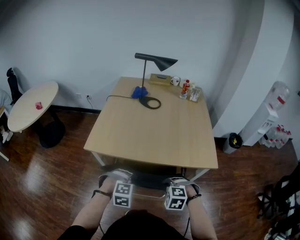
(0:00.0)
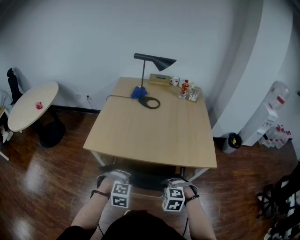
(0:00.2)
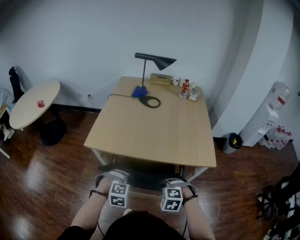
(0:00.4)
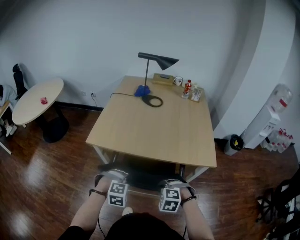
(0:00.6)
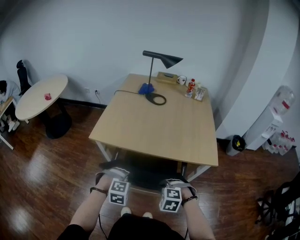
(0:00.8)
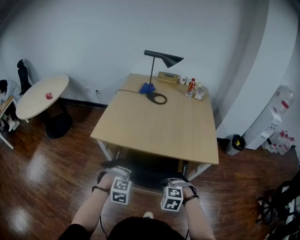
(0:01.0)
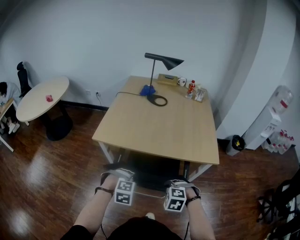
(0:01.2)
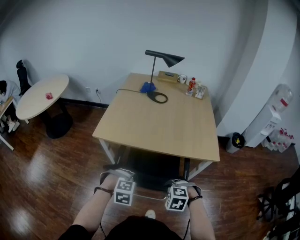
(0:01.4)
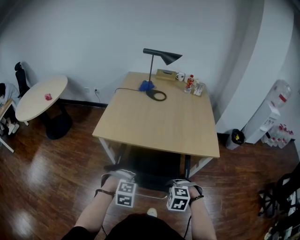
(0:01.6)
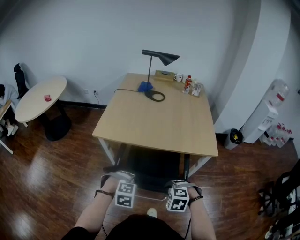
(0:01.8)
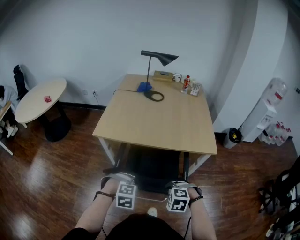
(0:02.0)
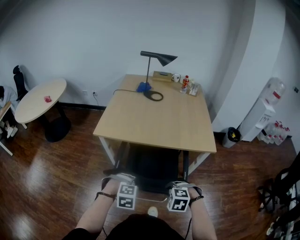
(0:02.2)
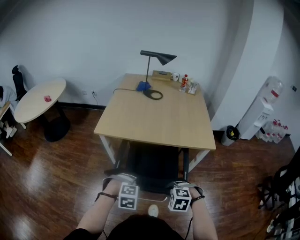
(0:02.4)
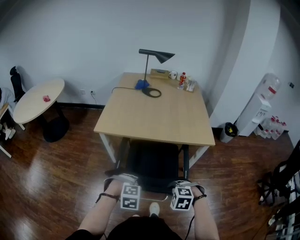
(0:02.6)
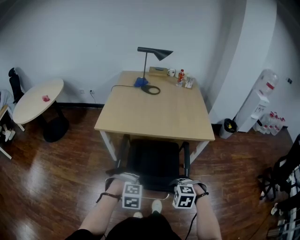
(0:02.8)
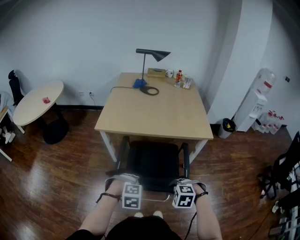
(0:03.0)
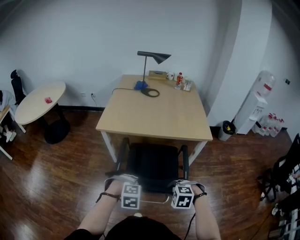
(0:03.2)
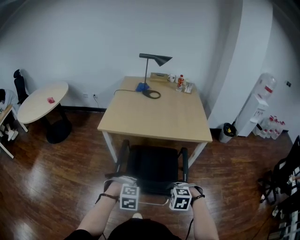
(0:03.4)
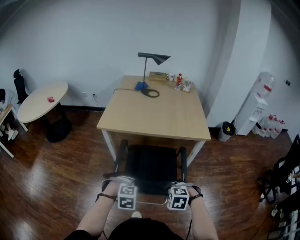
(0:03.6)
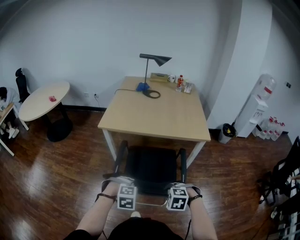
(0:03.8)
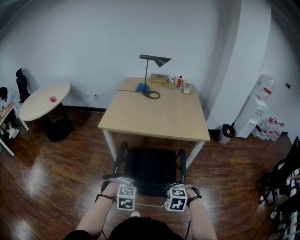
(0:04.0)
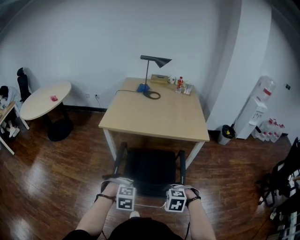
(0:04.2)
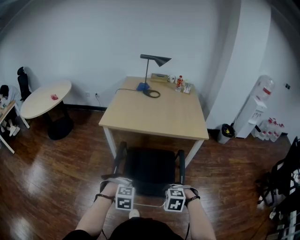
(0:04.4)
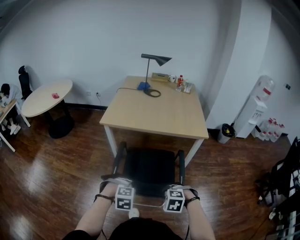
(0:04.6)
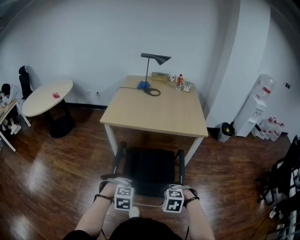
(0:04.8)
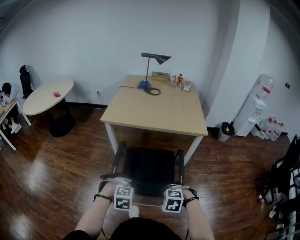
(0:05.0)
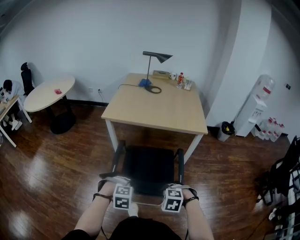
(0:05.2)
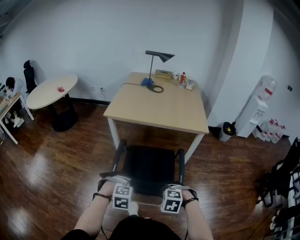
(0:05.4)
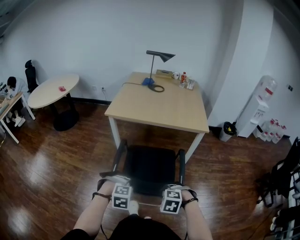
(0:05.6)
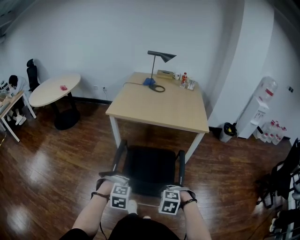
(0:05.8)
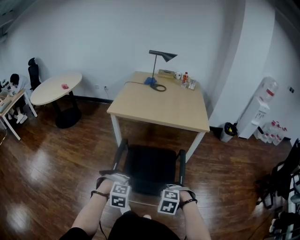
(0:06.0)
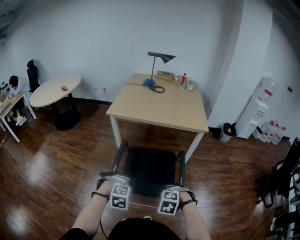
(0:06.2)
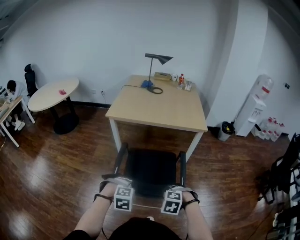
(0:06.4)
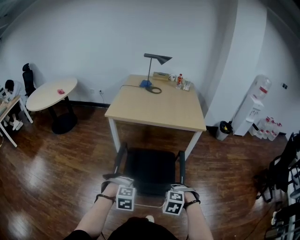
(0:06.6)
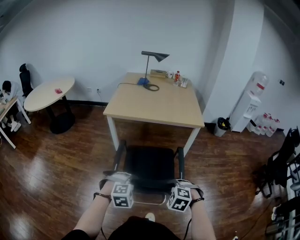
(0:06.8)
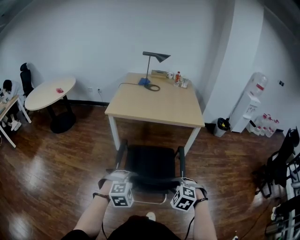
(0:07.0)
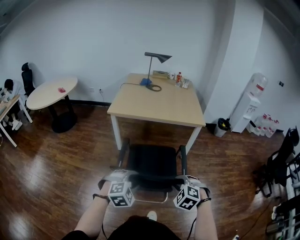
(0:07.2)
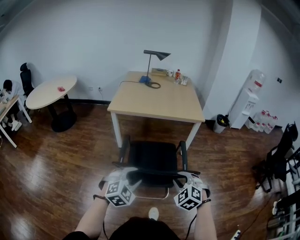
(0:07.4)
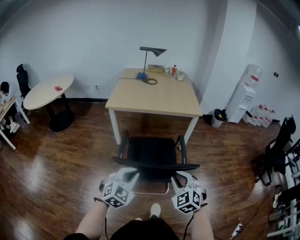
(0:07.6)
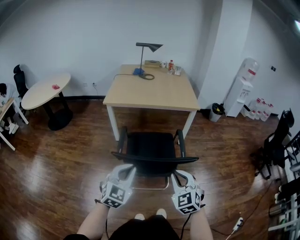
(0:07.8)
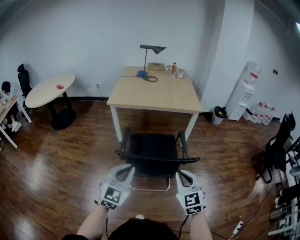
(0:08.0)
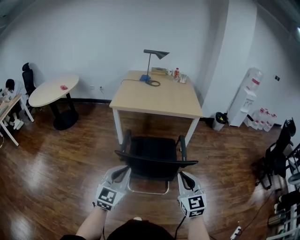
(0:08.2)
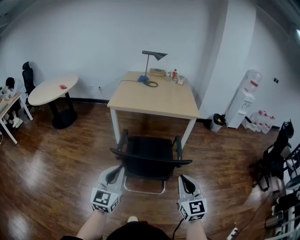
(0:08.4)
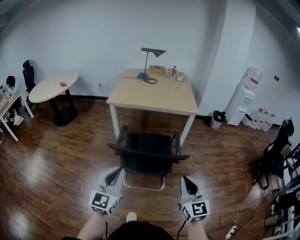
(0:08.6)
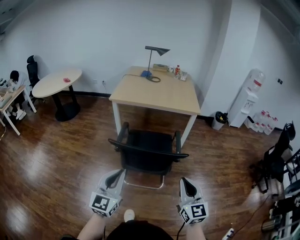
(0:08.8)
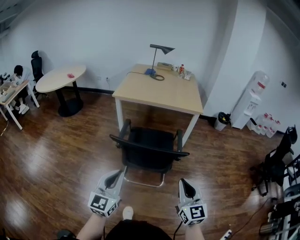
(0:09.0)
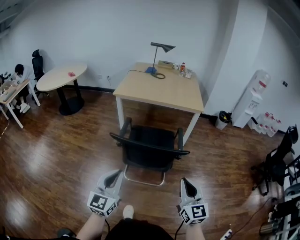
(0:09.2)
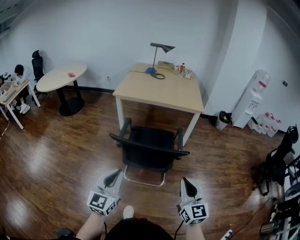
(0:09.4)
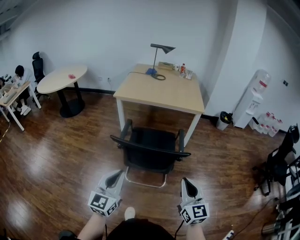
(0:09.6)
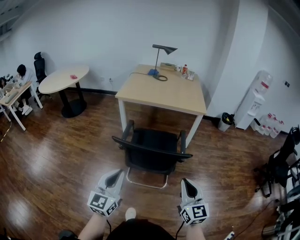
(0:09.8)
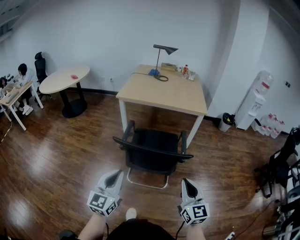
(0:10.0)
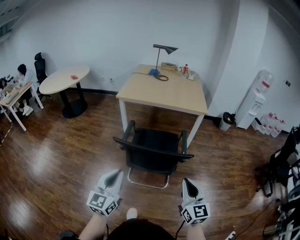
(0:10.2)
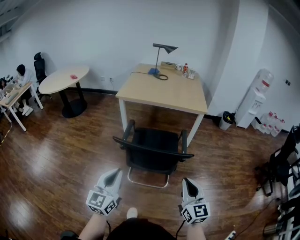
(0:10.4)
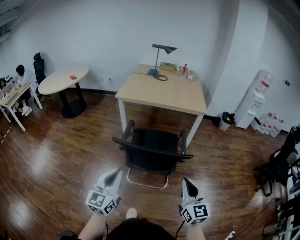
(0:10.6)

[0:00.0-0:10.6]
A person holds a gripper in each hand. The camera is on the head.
0:00.0 to 0:01.6: The two grippers go about 10 cm backward.
0:01.6 to 0:03.0: The two grippers go approximately 15 cm backward.
0:03.0 to 0:04.6: Both grippers travel together backward, some 10 cm.
0:04.6 to 0:06.0: The two grippers go some 10 cm backward.
0:06.0 to 0:07.6: The grippers both shift upward and backward by approximately 15 cm. The left gripper tilts its fingers roughly 40 degrees upward, and opens and closes again; the right gripper tilts its fingers some 40 degrees upward.
0:07.6 to 0:09.0: The left gripper is displaced backward and upward by roughly 15 cm, and changes its angle by roughly 40 degrees. Meanwhile the right gripper shifts some 15 cm backward, to the right and upward, and rotates some 40 degrees.
0:09.0 to 0:10.6: The grippers move only a little.

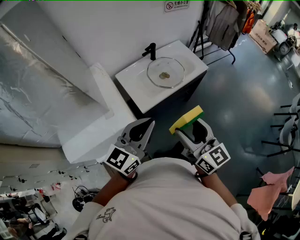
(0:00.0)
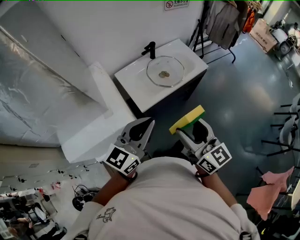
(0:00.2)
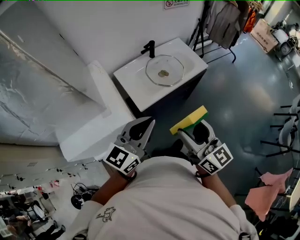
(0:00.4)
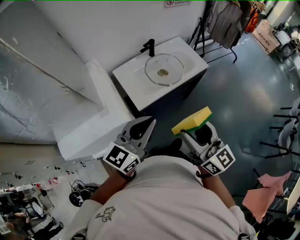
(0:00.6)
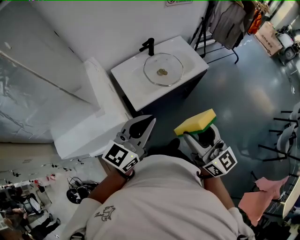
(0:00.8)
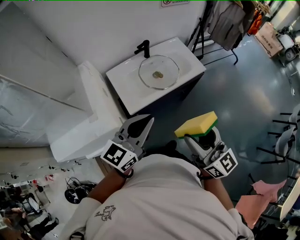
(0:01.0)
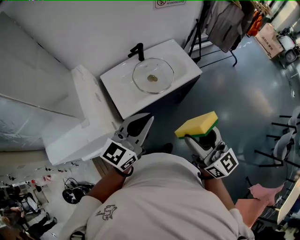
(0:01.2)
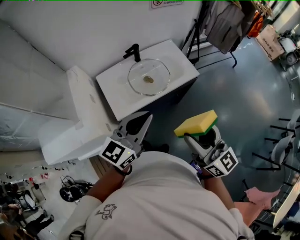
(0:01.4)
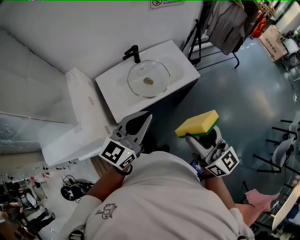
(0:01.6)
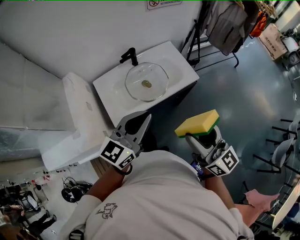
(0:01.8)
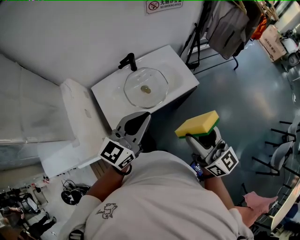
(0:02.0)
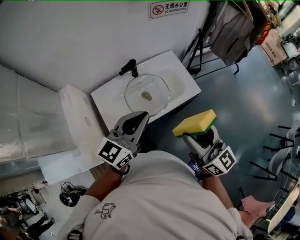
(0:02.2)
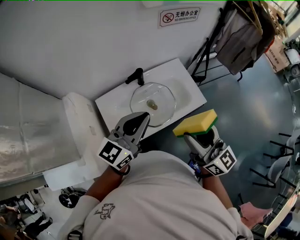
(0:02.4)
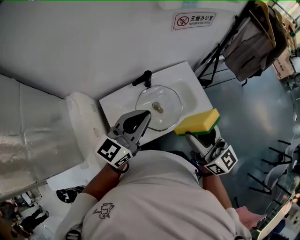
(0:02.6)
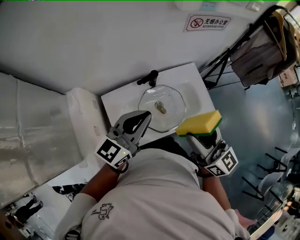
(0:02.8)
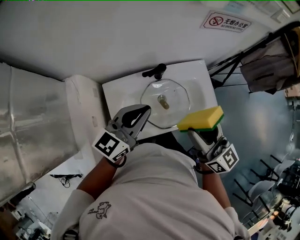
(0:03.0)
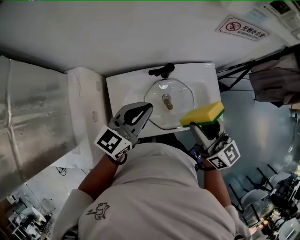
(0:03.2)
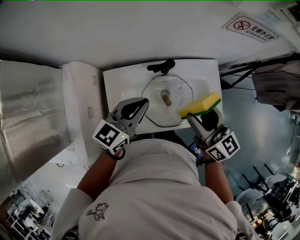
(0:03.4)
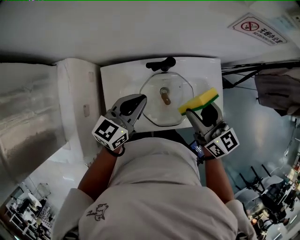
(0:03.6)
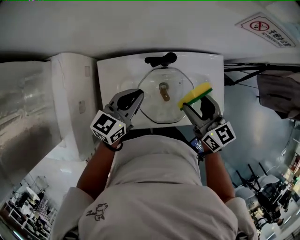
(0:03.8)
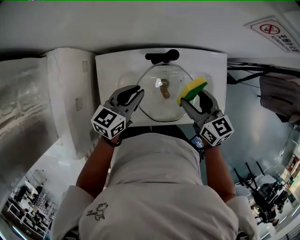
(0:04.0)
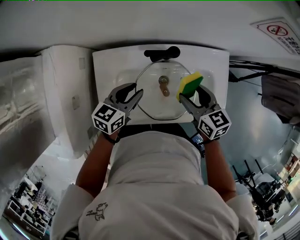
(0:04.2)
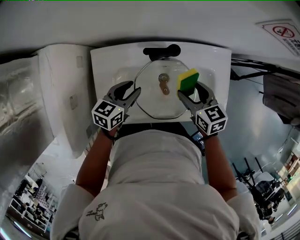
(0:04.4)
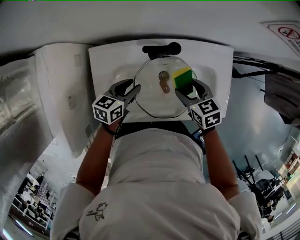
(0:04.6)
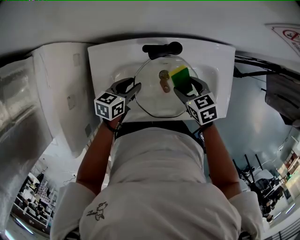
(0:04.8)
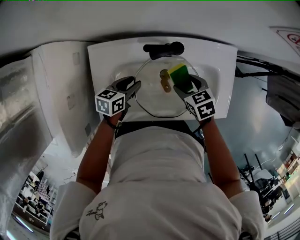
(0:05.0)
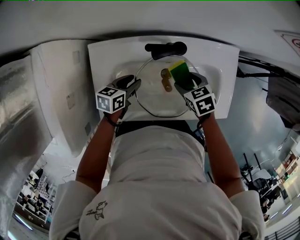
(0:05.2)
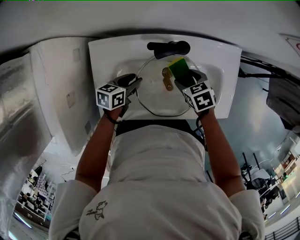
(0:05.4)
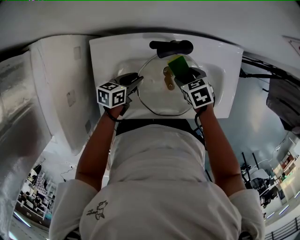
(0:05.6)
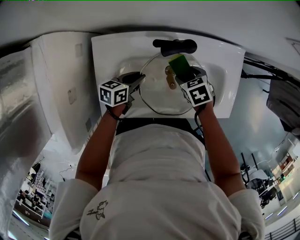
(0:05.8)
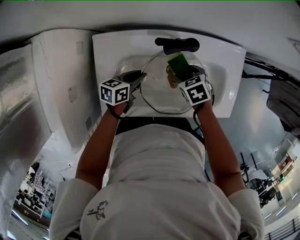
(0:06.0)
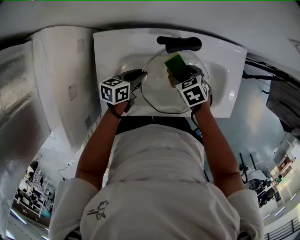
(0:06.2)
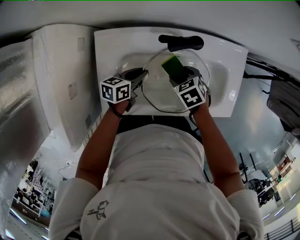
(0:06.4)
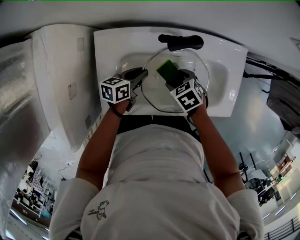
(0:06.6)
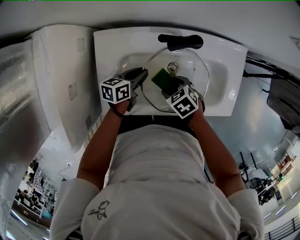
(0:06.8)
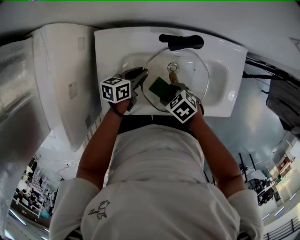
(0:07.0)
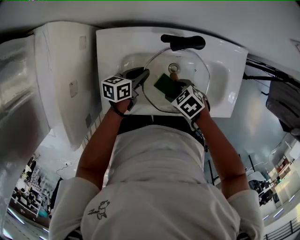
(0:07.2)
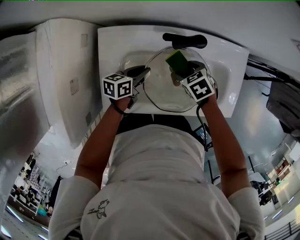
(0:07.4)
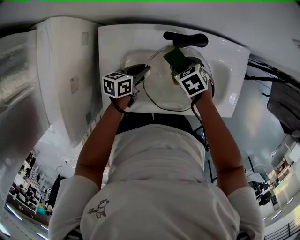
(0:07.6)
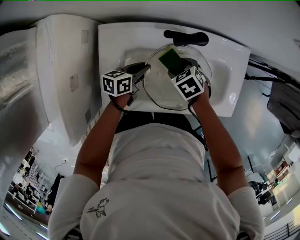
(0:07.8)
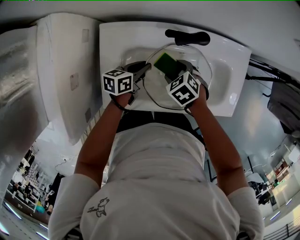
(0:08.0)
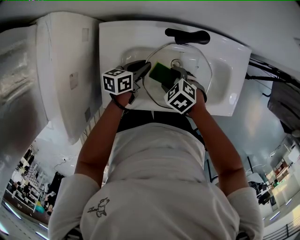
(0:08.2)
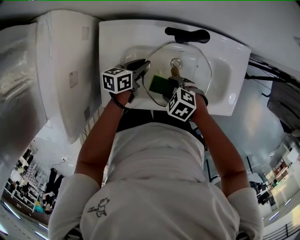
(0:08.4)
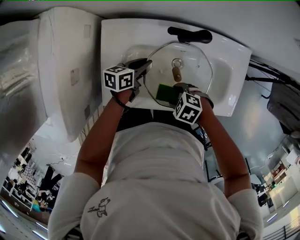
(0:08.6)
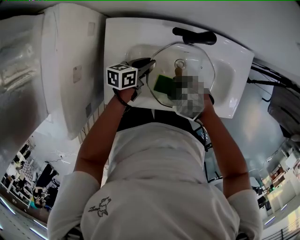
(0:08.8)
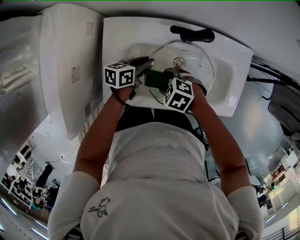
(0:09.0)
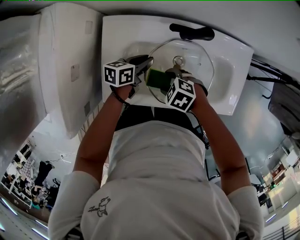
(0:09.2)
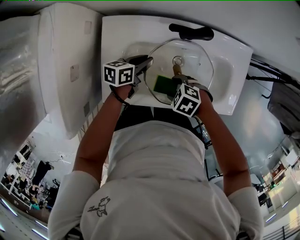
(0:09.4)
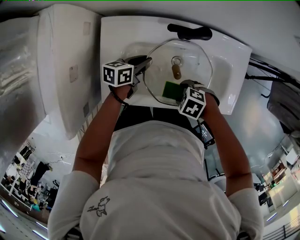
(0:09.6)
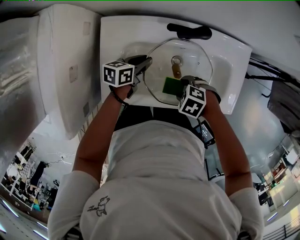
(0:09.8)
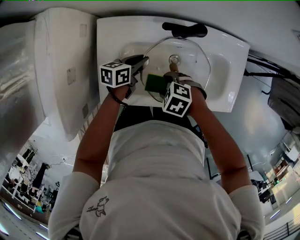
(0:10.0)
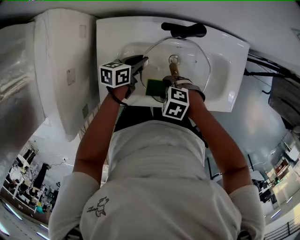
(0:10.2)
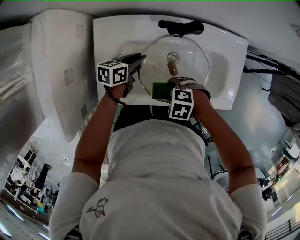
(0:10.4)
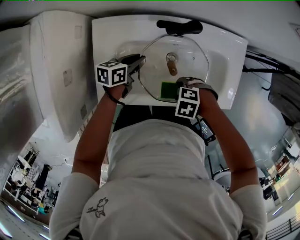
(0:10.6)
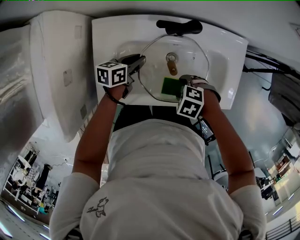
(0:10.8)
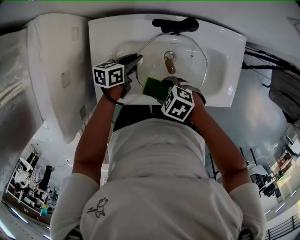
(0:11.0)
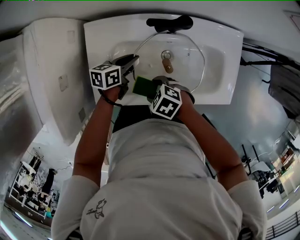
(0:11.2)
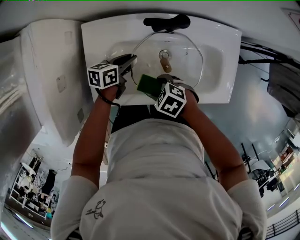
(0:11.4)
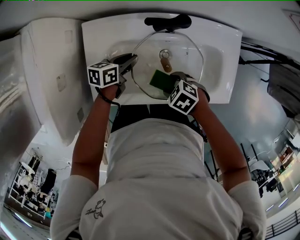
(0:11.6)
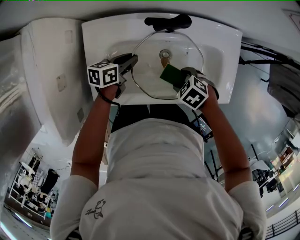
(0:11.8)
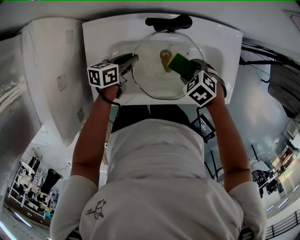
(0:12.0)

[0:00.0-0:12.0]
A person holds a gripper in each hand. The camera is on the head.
0:00.0 to 0:01.6: The right gripper heads to the right and forward, covering about 25 cm; the left gripper shifts some 25 cm forward and to the right.
0:01.6 to 0:03.0: The right gripper goes about 35 cm forward. Meanwhile the left gripper is displaced forward and to the left by some 30 cm.
0:03.0 to 0:04.4: The right gripper heads downward and forward, covering some 35 cm, and angles its fingers downward, by about 40 degrees. The left gripper shifts roughly 30 cm downward, tilts its fingers approximately 30 degrees downward, and opens its fingers.
0:04.4 to 0:06.0: The two grippers go approximately 10 cm downward. The left gripper turns by about 20 degrees. The right gripper angles its fingers downward, by approximately 30 degrees.
0:07.6 to 0:09.0: The right gripper moves some 15 cm, and changes its angle by about 40 degrees.
0:09.0 to 0:10.4: The right gripper changes place by roughly 10 cm.
0:10.4 to 0:12.0: The right gripper shifts by about 15 cm, and changes its angle by approximately 30 degrees.

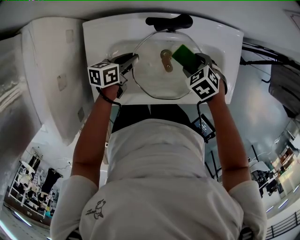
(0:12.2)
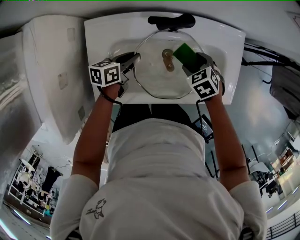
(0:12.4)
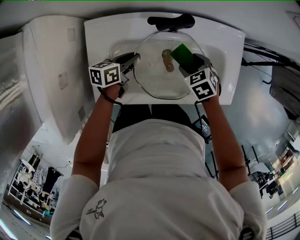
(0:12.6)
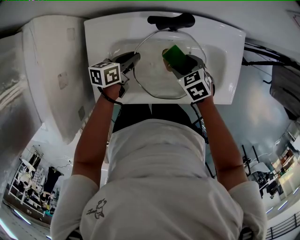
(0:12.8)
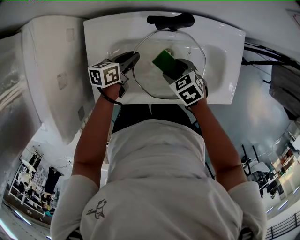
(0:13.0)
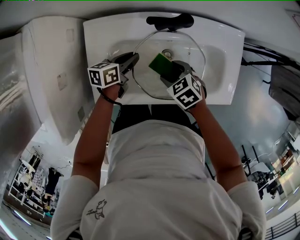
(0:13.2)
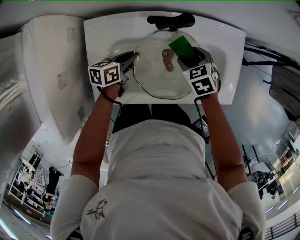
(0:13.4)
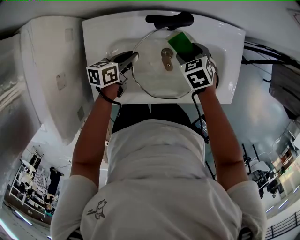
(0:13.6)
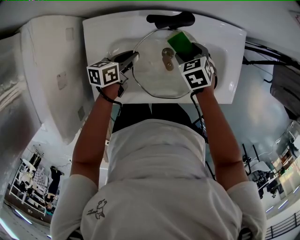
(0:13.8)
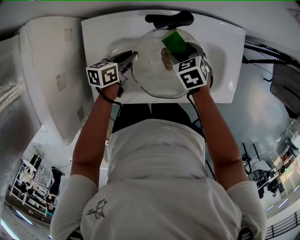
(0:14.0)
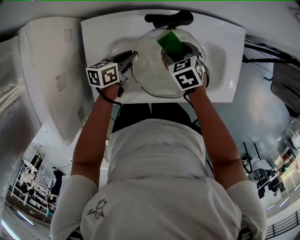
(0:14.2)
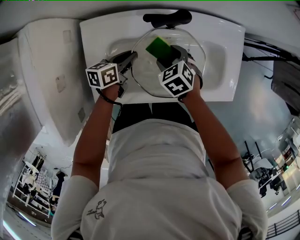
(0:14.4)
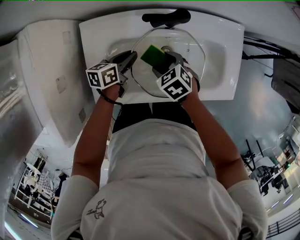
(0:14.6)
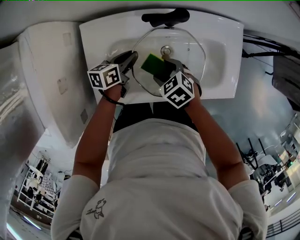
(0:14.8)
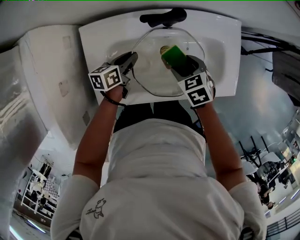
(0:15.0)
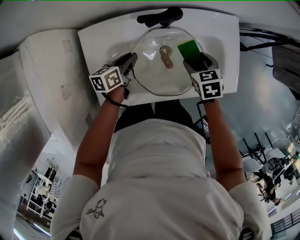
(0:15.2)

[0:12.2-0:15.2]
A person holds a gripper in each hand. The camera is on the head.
0:13.8 to 0:15.2: The right gripper travels to the right by about 5 cm.
